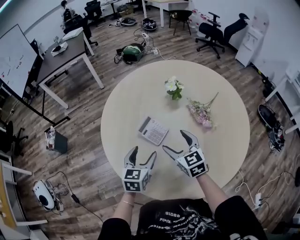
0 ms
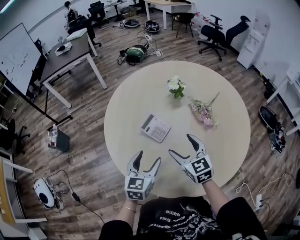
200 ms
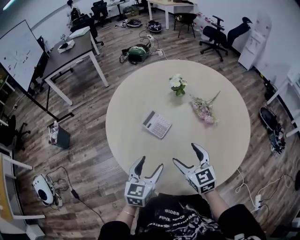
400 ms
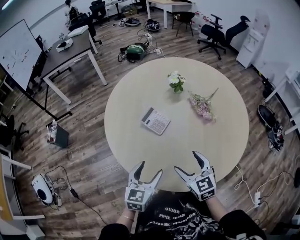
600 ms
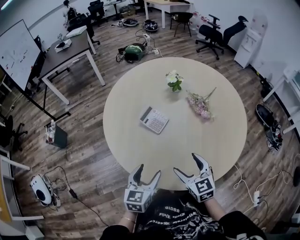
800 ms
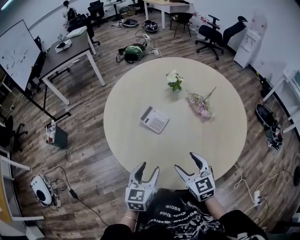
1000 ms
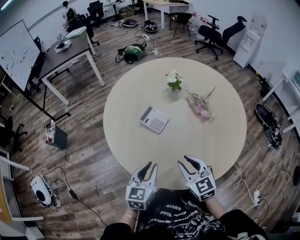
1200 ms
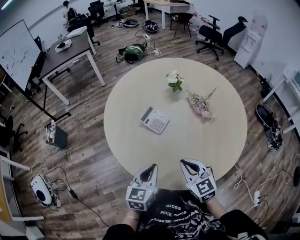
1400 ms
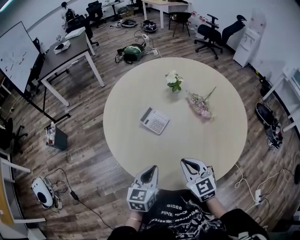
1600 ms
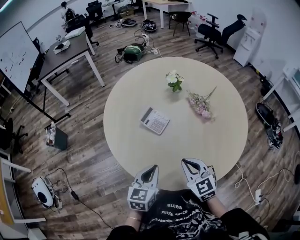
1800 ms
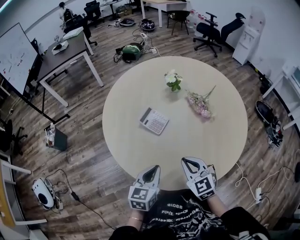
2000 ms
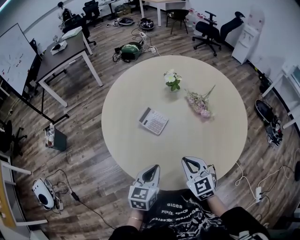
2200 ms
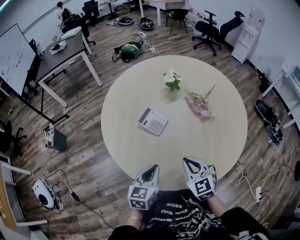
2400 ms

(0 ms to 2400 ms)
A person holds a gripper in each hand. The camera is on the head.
0 ms - 1200 ms: Both grippers move backward, approximately 15 cm. The left gripper closes; the right gripper closes.
1200 ms - 2400 ms: The grippers stay close to where they were, moving slightly.

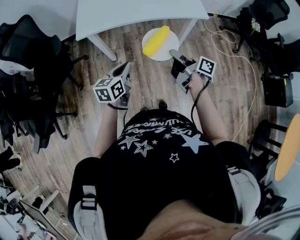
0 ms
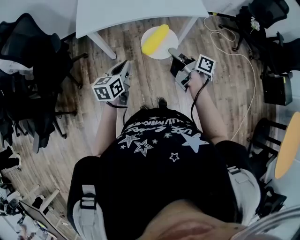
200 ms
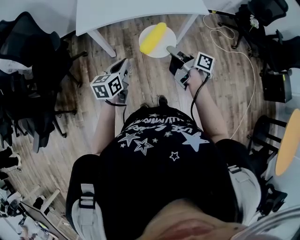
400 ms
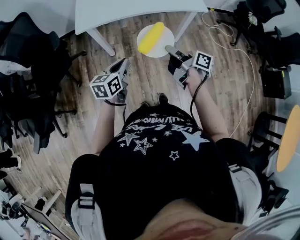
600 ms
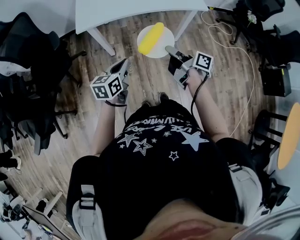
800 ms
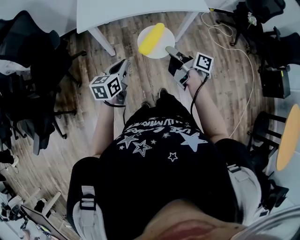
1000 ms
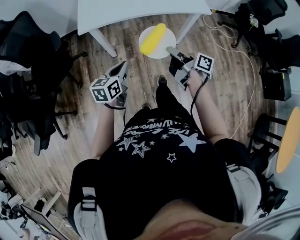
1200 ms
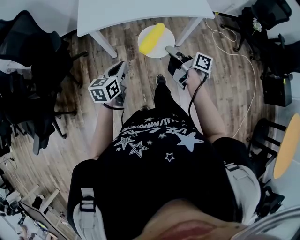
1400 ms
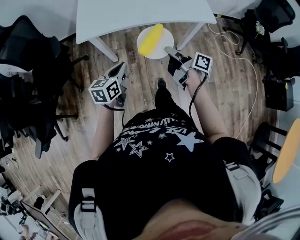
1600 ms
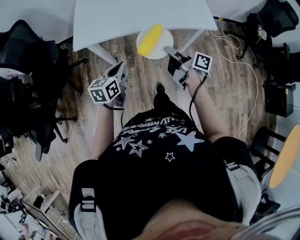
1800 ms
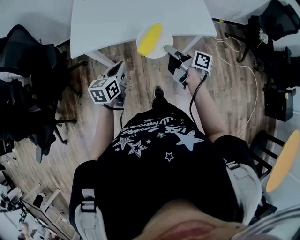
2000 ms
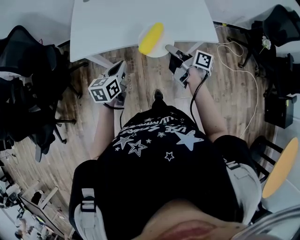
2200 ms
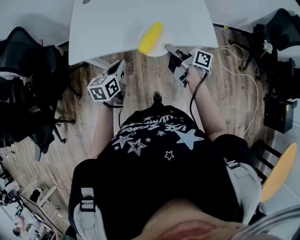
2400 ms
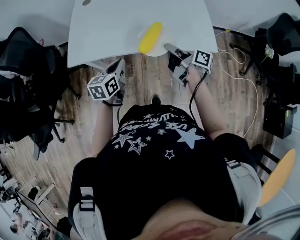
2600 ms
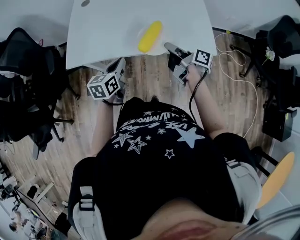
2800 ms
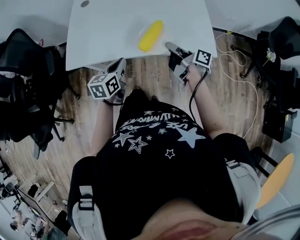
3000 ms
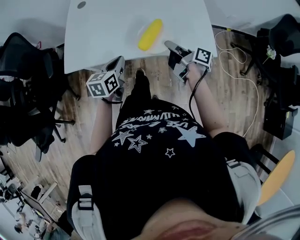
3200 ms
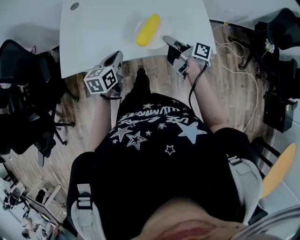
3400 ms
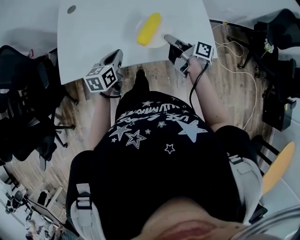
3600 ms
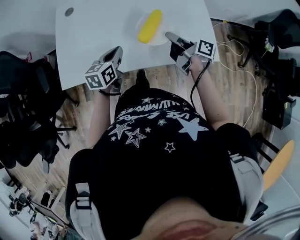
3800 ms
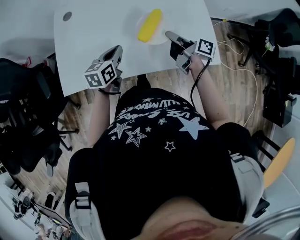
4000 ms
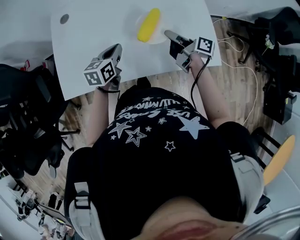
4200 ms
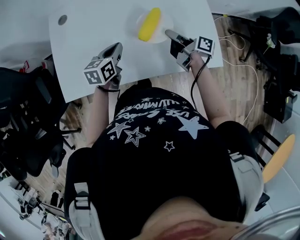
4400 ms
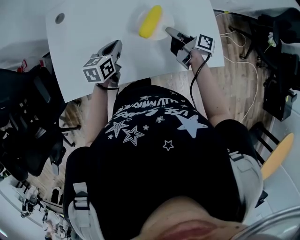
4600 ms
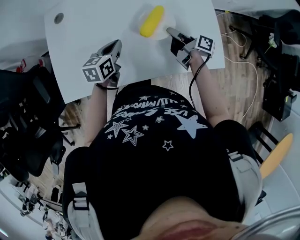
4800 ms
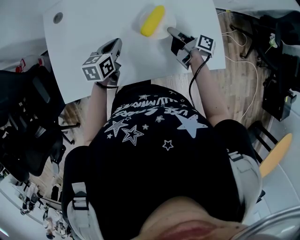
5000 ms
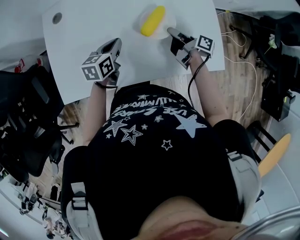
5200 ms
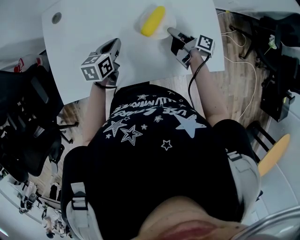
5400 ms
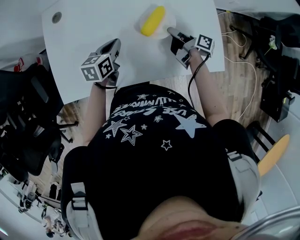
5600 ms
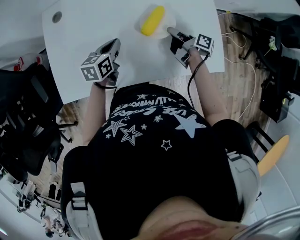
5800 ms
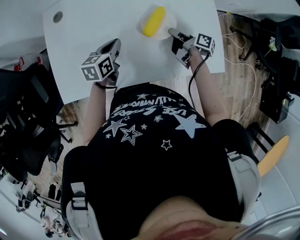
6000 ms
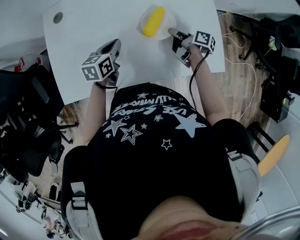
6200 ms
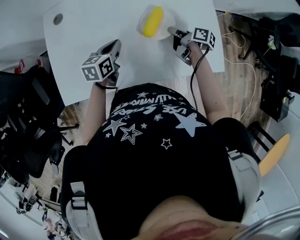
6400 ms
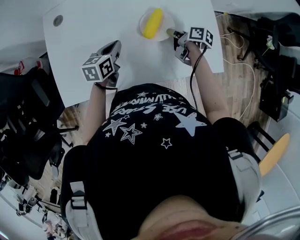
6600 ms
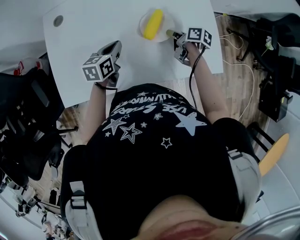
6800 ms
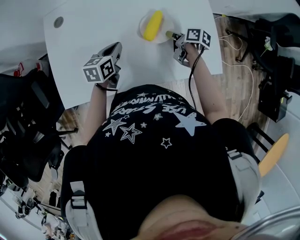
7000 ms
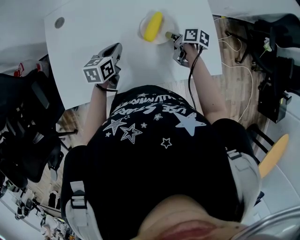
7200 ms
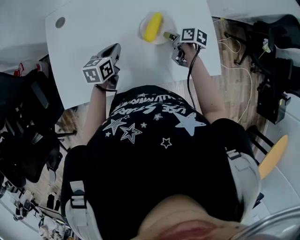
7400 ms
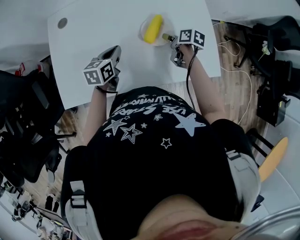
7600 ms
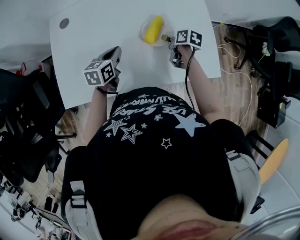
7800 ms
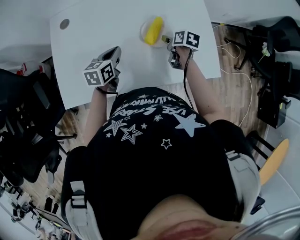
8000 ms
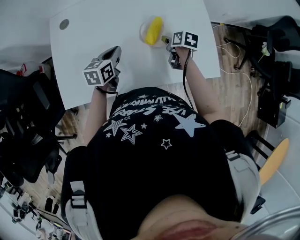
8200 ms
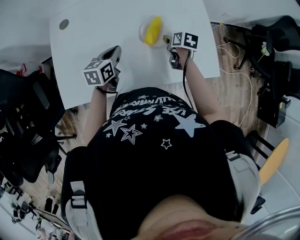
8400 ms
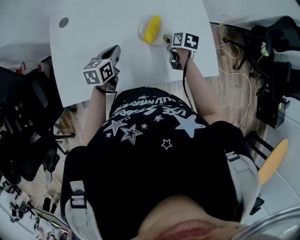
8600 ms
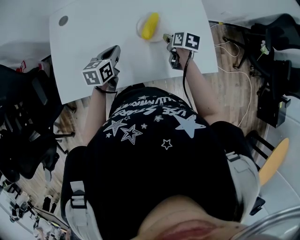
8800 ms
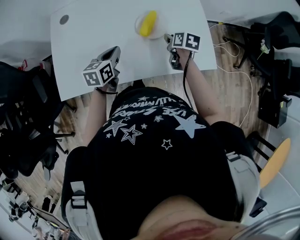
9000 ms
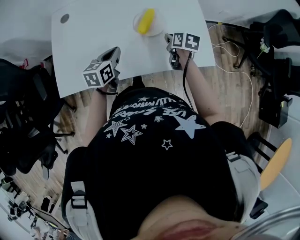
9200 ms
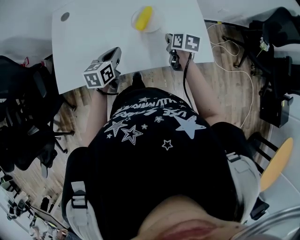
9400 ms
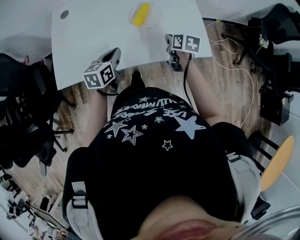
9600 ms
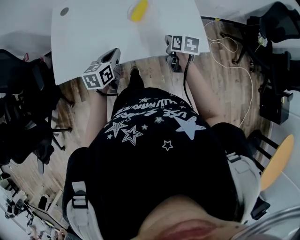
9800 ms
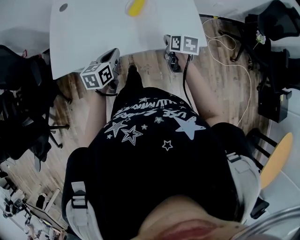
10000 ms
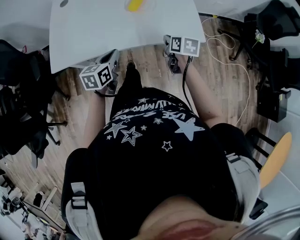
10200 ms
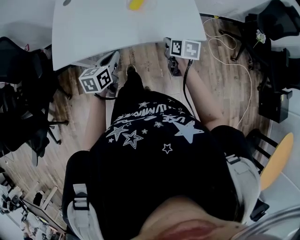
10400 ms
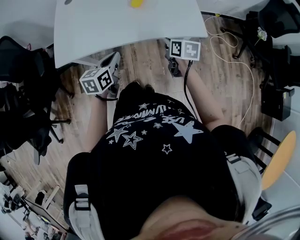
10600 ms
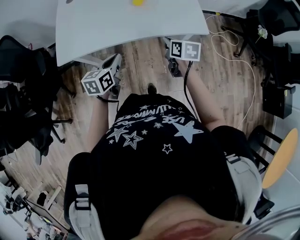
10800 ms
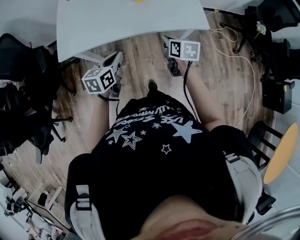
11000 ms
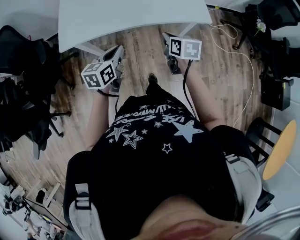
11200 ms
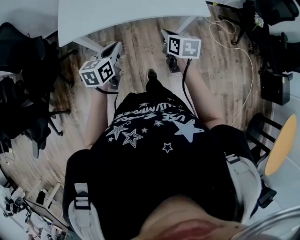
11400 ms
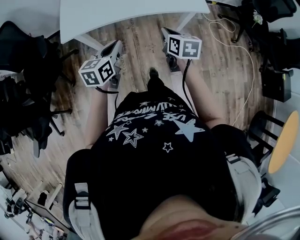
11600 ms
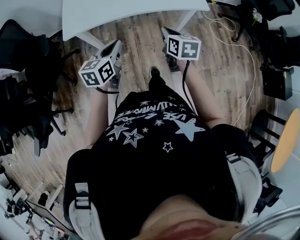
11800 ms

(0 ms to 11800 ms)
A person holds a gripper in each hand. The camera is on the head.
0 ms - 1400 ms: Both grippers travel together to the left, about 5 cm.
1400 ms - 3000 ms: Both grippers travel together forward and to the right, approximately 30 cm.
3000 ms - 4400 ms: The two grippers go roughly 20 cm forward.
4400 ms - 6000 ms: The right gripper moves downward, approximately 5 cm.
6000 ms - 7400 ms: The right gripper changes its angle by approximately 30 degrees, and opens up.
7400 ms - 8800 ms: The grippers stay close to where they were, moving slightly.
8800 ms - 10400 ms: Both grippers move backward, roughly 20 cm. The right gripper closes its fingers.
10400 ms - 11800 ms: The right gripper shifts roughly 20 cm backward and to the left; the left gripper shifts about 15 cm backward.

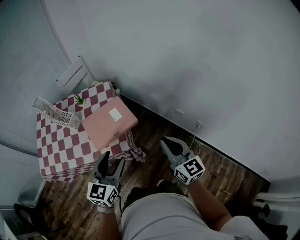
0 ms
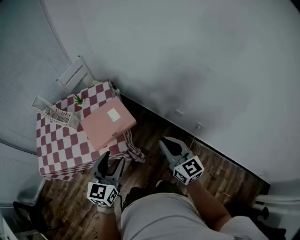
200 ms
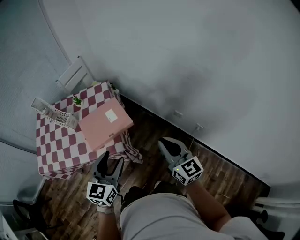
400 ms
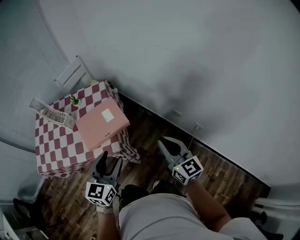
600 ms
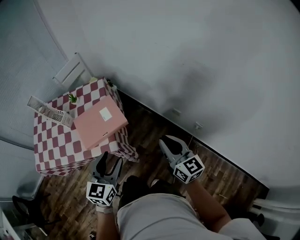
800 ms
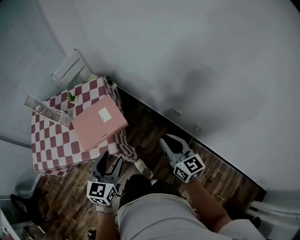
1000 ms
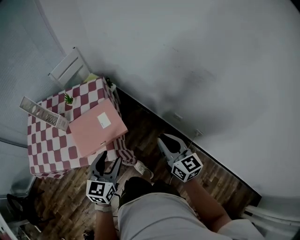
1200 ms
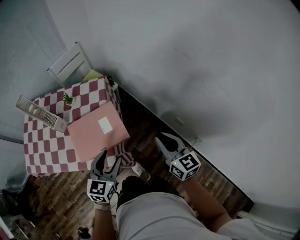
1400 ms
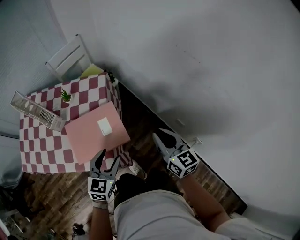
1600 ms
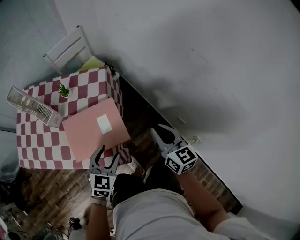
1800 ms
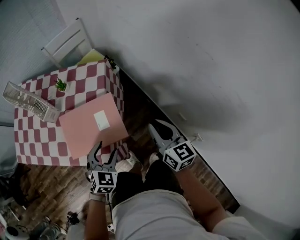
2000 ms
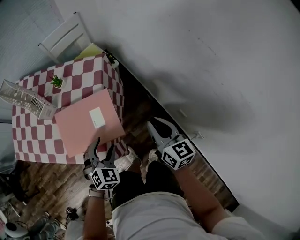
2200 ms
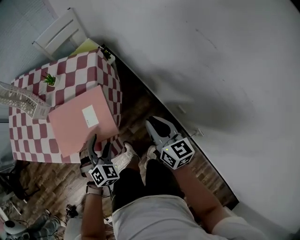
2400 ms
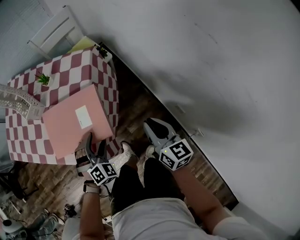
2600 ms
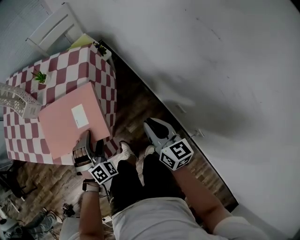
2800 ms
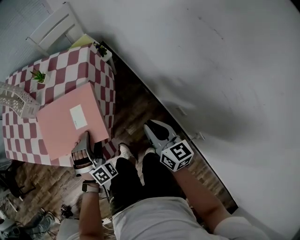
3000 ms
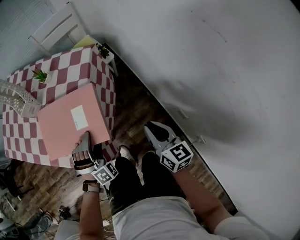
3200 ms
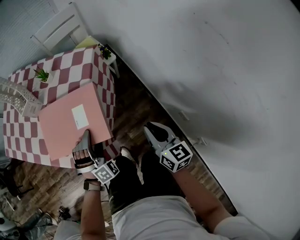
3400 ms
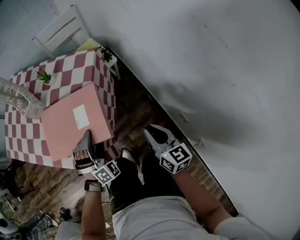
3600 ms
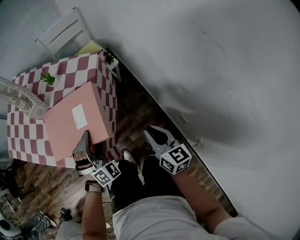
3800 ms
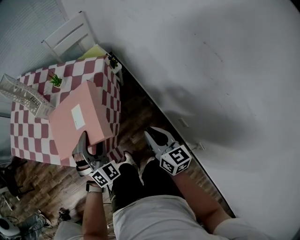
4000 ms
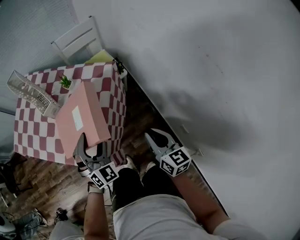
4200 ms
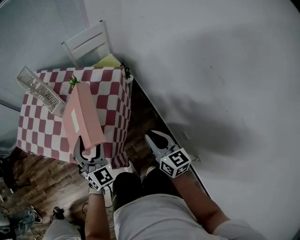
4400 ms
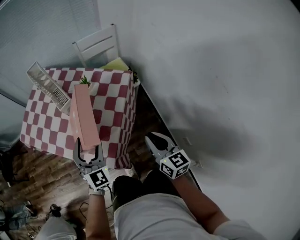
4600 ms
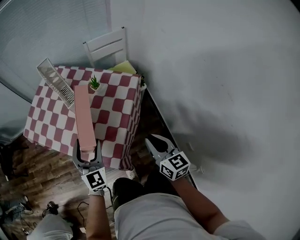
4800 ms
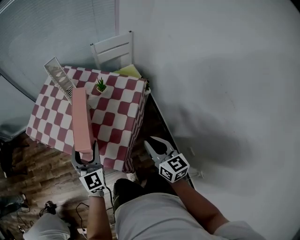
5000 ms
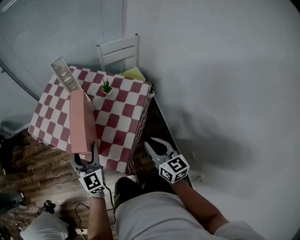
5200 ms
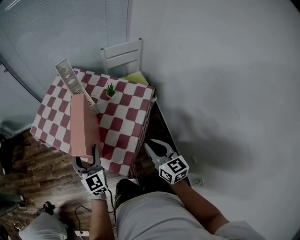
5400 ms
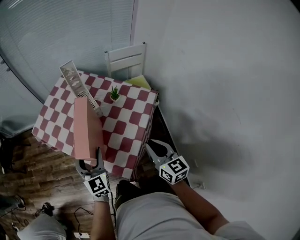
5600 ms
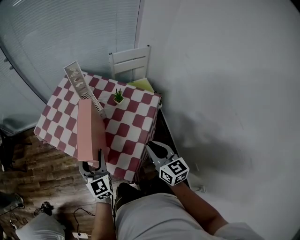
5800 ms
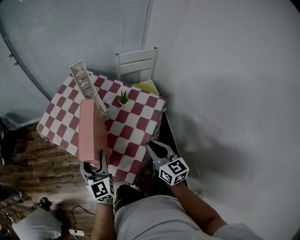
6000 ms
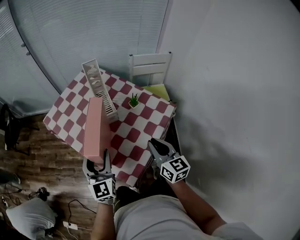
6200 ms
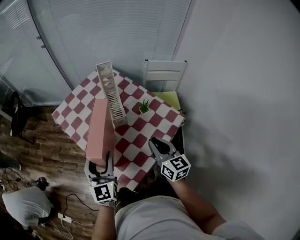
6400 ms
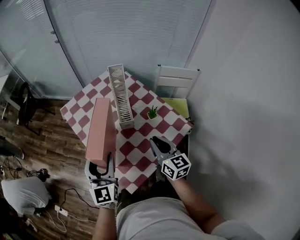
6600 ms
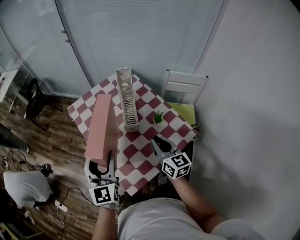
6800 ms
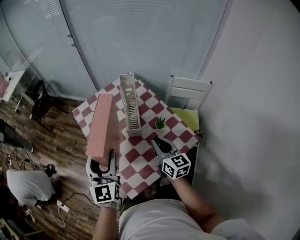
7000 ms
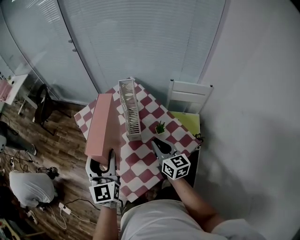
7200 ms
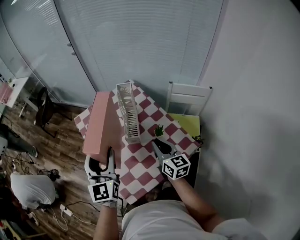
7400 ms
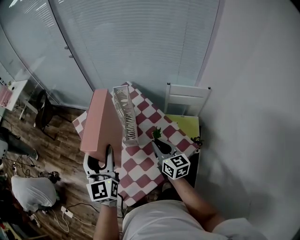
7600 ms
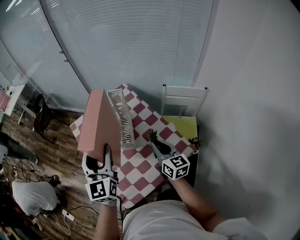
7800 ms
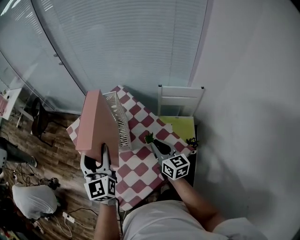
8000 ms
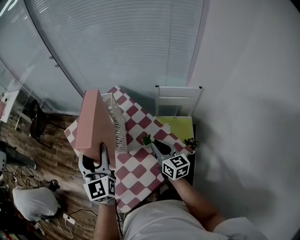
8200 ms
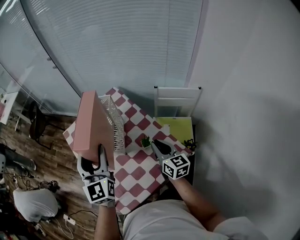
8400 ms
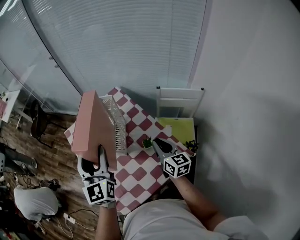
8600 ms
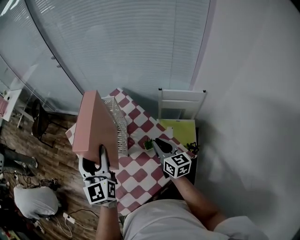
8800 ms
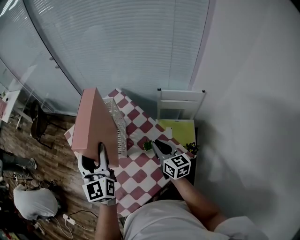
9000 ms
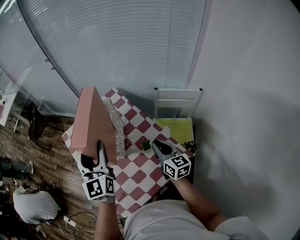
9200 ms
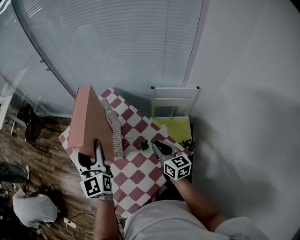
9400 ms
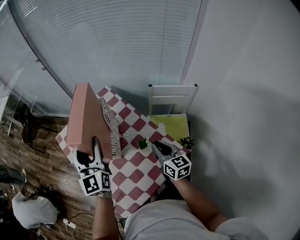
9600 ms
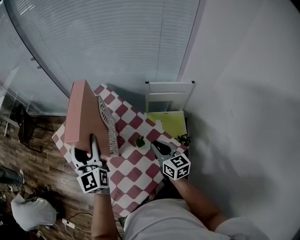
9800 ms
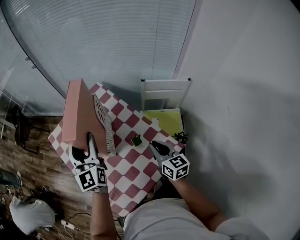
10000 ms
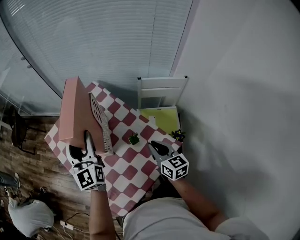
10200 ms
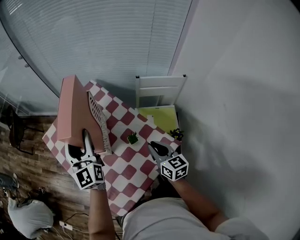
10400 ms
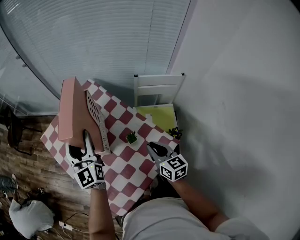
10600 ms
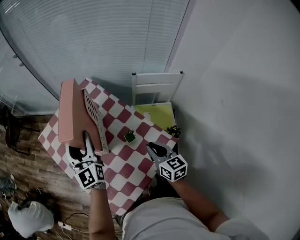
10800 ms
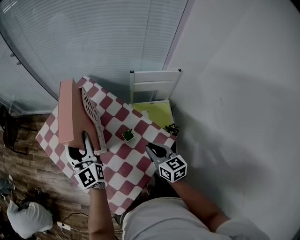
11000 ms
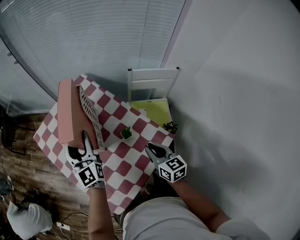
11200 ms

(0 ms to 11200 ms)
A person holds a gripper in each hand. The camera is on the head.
0 ms - 1600 ms: The left gripper heads forward and downward, covering some 20 cm, while the right gripper heads forward, covering roughly 25 cm.
1600 ms - 3200 ms: Both grippers move downward, some 15 cm. The left gripper rolls clockwise, seen from behind, by about 60 degrees.
3200 ms - 4800 ms: The left gripper travels upward and to the left by roughly 30 cm, and rotates around the line of its fingers by some 70 degrees, counterclockwise from behind. The right gripper goes roughly 20 cm upward, to the left and forward.
4800 ms - 6400 ms: The right gripper travels forward by roughly 20 cm, and rotates about 20 degrees, while the left gripper travels to the left and upward by some 10 cm, and turns by roughly 30 degrees.
6400 ms - 8000 ms: The left gripper heads upward, forward and to the right, covering roughly 20 cm. Meanwhile the right gripper moves forward and to the right, about 15 cm.
8000 ms - 9600 ms: The left gripper moves forward, roughly 10 cm. The right gripper is displaced to the right by some 5 cm.
9600 ms - 11200 ms: The right gripper heads backward, covering about 5 cm. Meanwhile the left gripper heads downward, covering roughly 10 cm.
